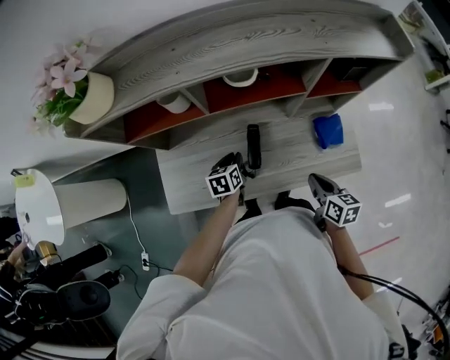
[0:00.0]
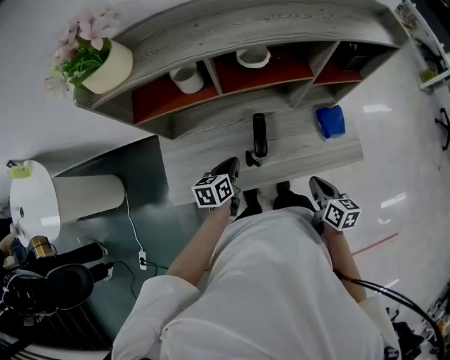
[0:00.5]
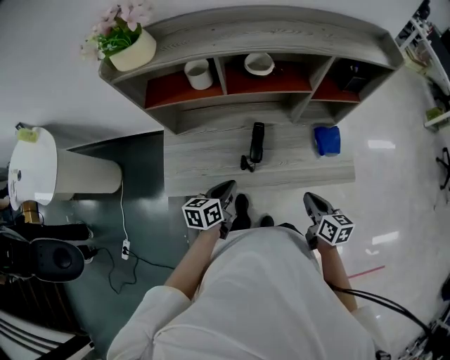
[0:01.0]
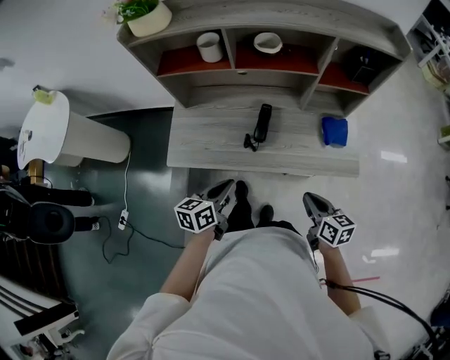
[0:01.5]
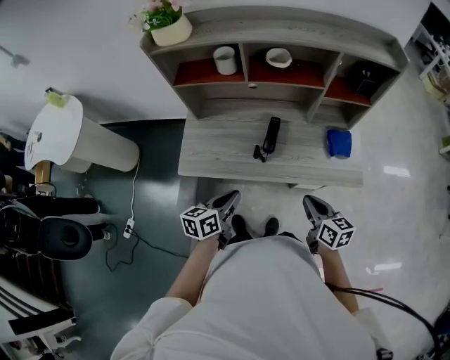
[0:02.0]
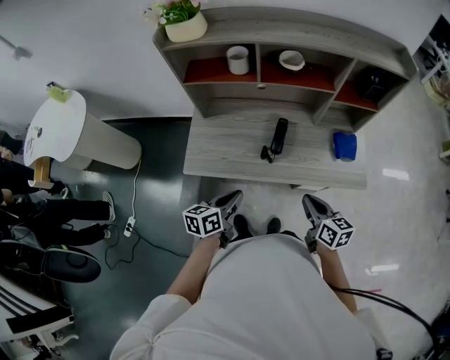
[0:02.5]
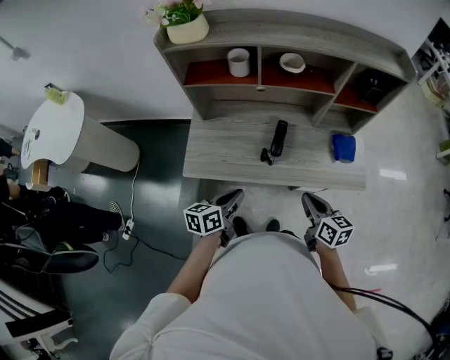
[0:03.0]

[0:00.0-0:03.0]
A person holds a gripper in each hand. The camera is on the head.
0:00.0 to 0:01.5: The right gripper travels backward by roughly 15 cm. Meanwhile the left gripper shifts approximately 30 cm backward and upward, and turns by roughly 20 degrees.
0:01.5 to 0:03.0: The grippers both shift to the left by roughly 5 cm.

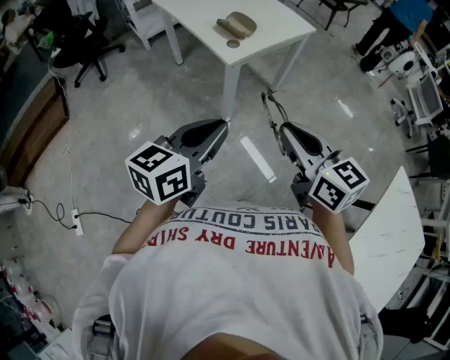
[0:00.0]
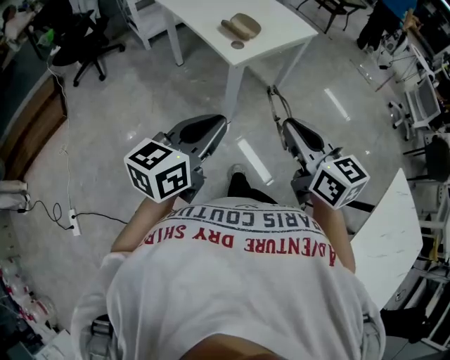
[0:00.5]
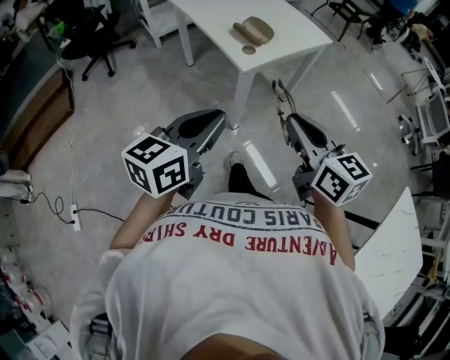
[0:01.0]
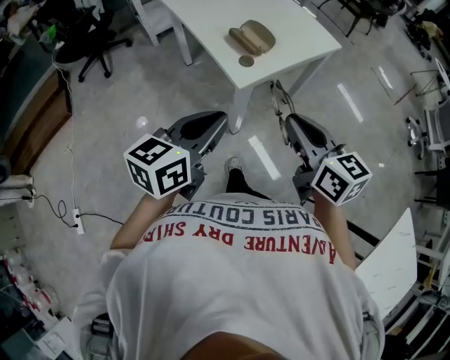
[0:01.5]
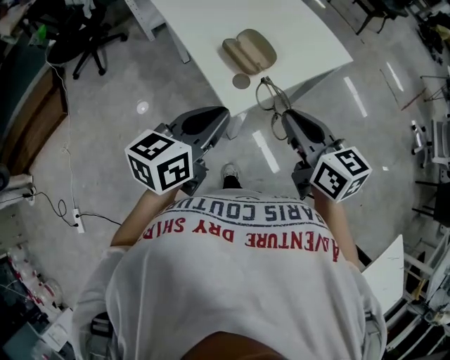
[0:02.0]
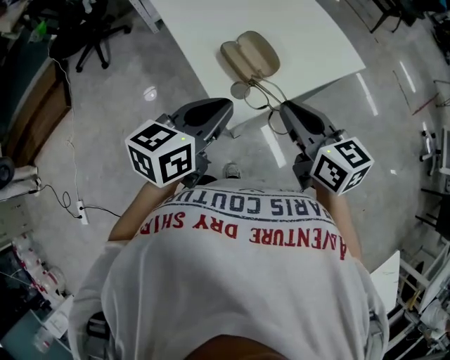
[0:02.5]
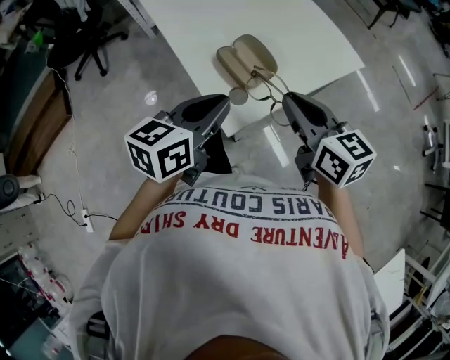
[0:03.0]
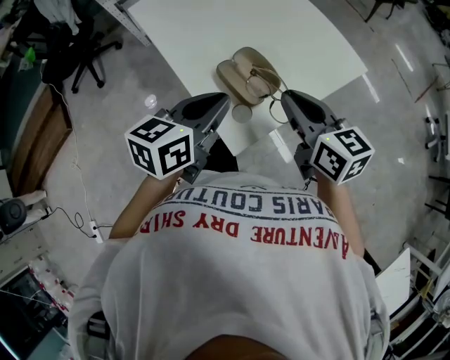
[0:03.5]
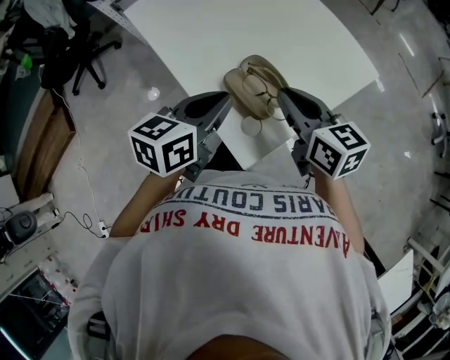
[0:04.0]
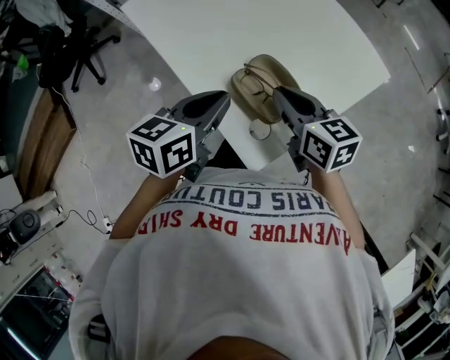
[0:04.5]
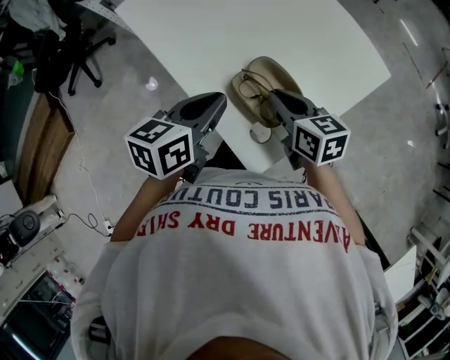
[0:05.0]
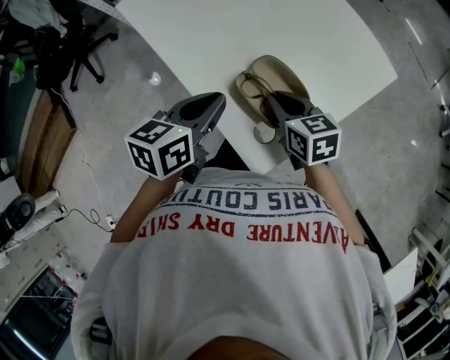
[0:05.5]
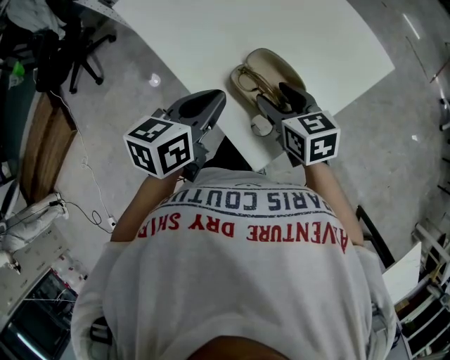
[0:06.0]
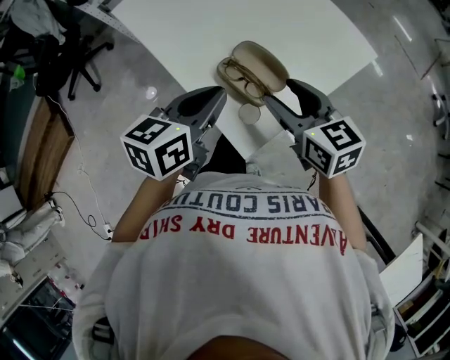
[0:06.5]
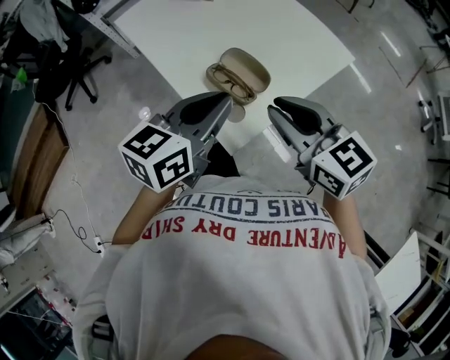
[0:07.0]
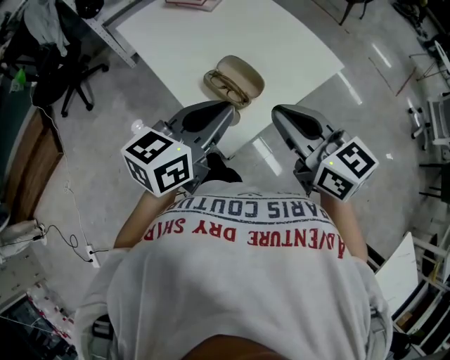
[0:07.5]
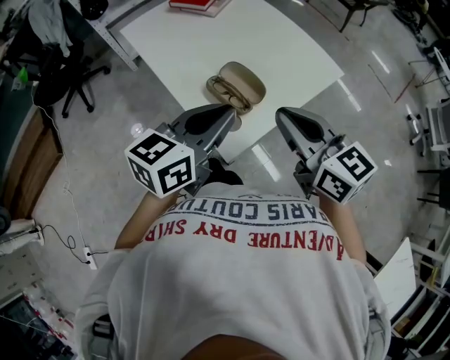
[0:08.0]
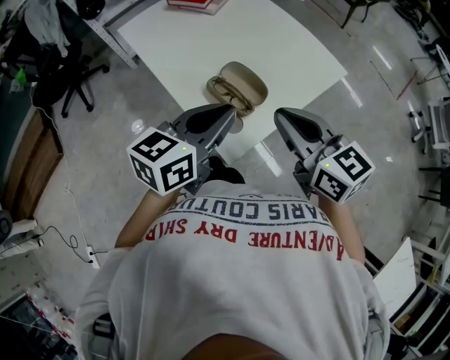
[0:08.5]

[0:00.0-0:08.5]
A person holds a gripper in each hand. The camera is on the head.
0:00.0 to 0:02.0: The two grippers go roughly 30 cm forward.
0:02.0 to 0:04.0: The grippers both shift forward by some 20 cm.
0:04.0 to 0:06.5: The right gripper reaches roughly 10 cm downward, then returns, and opens.
0:06.5 to 0:08.5: Both grippers move upward and backward, roughly 10 cm. The right gripper closes its fingers.

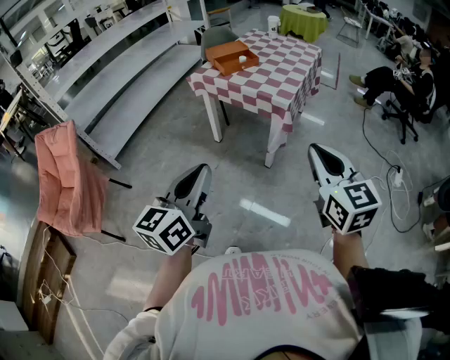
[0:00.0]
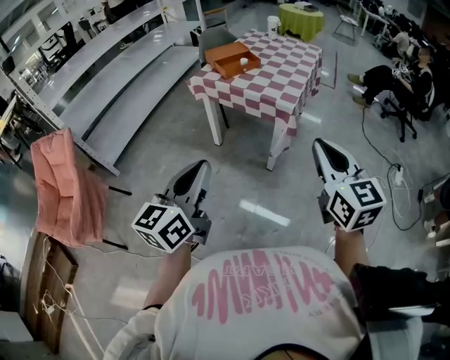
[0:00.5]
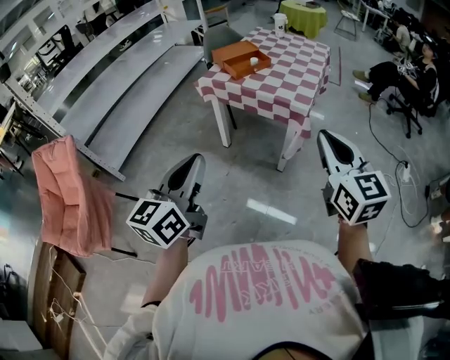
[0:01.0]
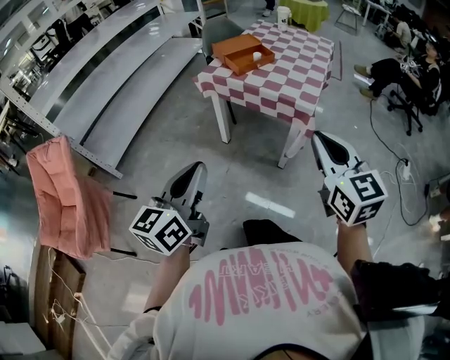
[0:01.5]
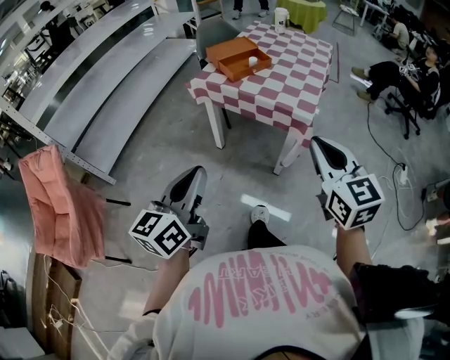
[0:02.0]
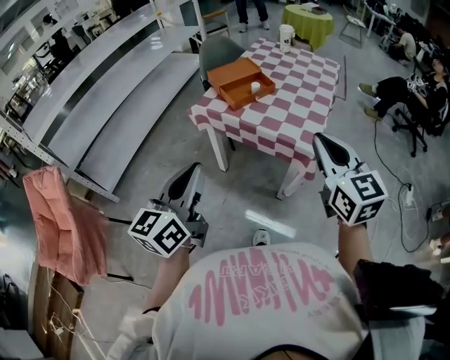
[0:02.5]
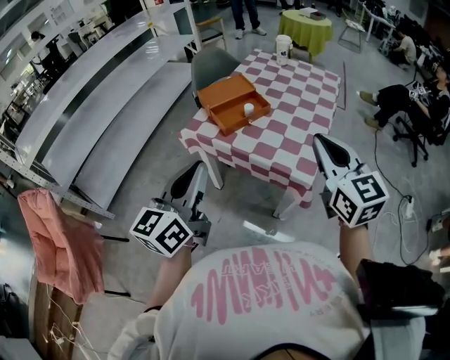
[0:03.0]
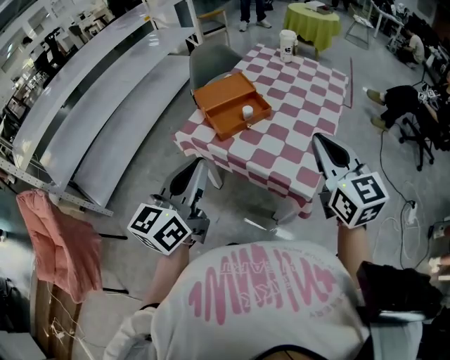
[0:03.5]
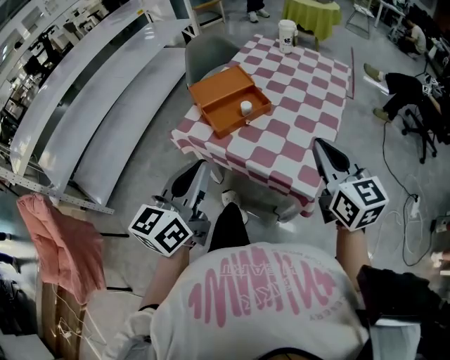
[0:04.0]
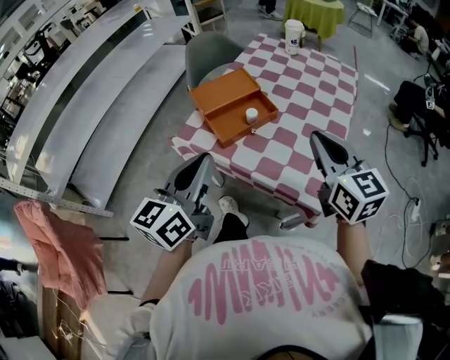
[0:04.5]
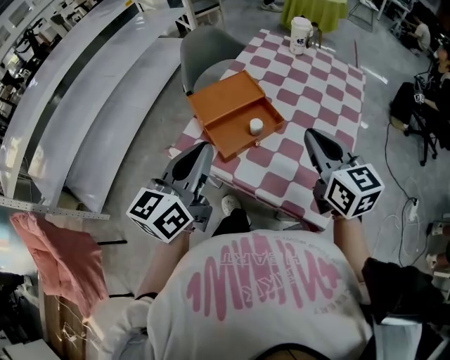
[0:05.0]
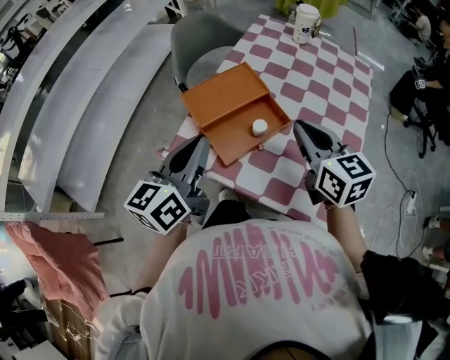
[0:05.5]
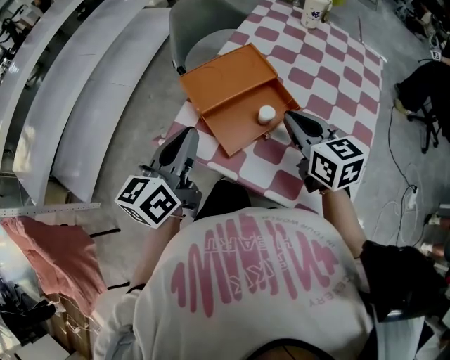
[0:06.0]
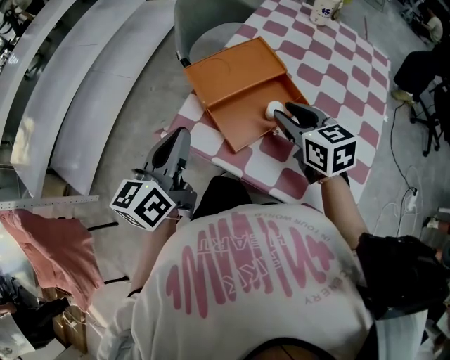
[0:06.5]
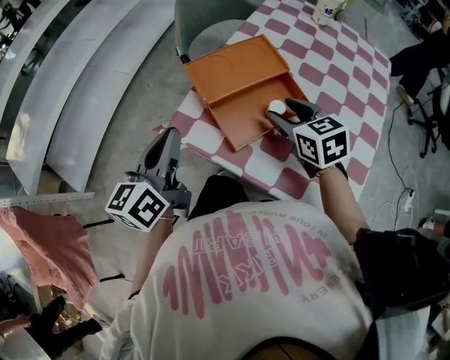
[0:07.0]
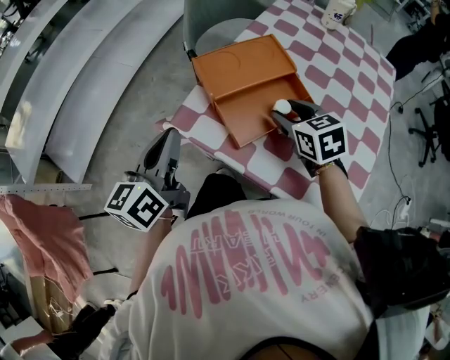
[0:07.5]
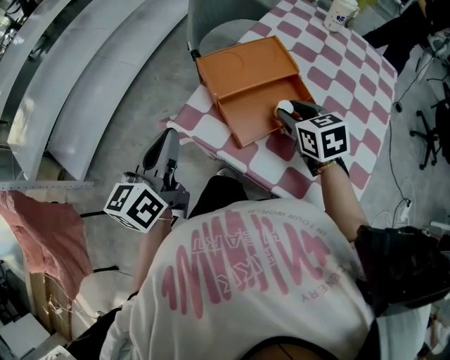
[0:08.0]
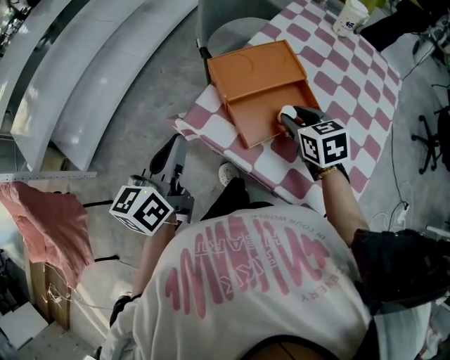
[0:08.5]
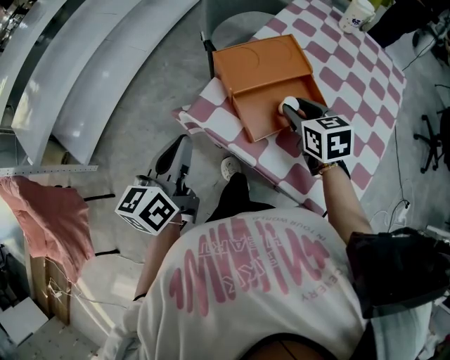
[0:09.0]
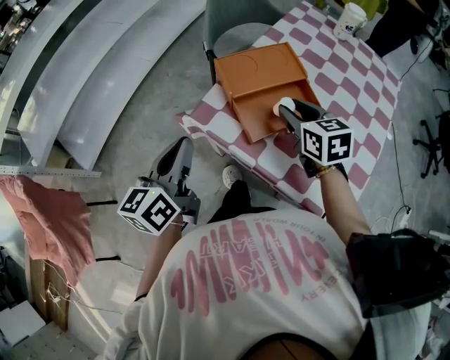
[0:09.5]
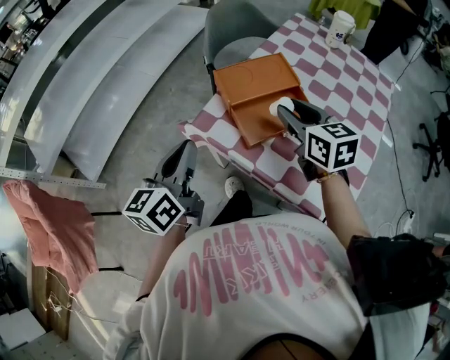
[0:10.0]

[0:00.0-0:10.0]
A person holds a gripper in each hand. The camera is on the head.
0:00.0 to 0:02.0: Both grippers travel together forward and to the left, roughly 25 cm.
0:02.0 to 0:04.0: Both grippers move forward, some 35 cm.
0:04.0 to 0:06.0: The right gripper is displaced forward, downward and to the left by approximately 30 cm; the left gripper moves forward and downward, some 25 cm.
0:06.0 to 0:08.0: The left gripper goes approximately 10 cm to the left. The right gripper is displaced downward by some 10 cm, rotates approximately 20 degrees, and opens up.
0:08.0 to 0:10.0: The left gripper goes approximately 5 cm backward. Meanwhile the right gripper moves upward, about 10 cm.

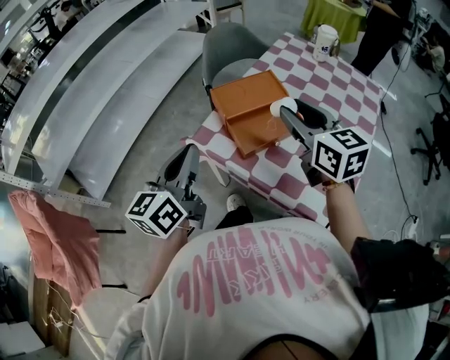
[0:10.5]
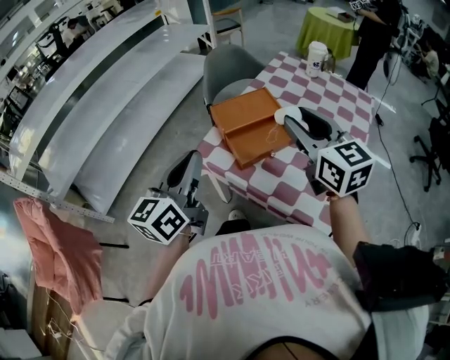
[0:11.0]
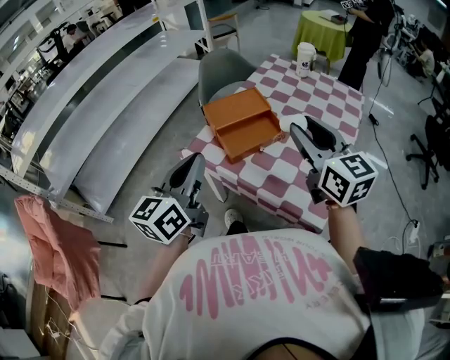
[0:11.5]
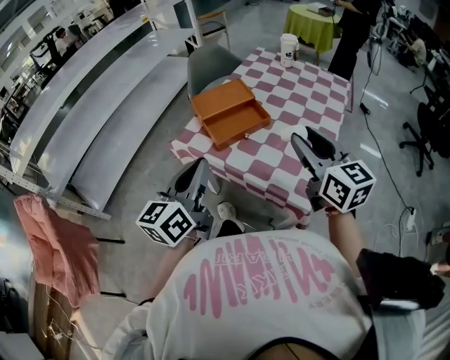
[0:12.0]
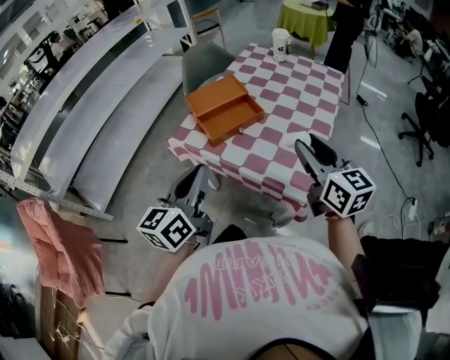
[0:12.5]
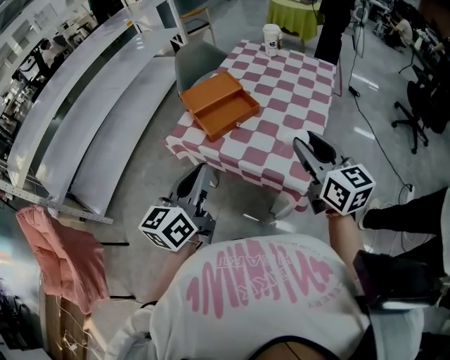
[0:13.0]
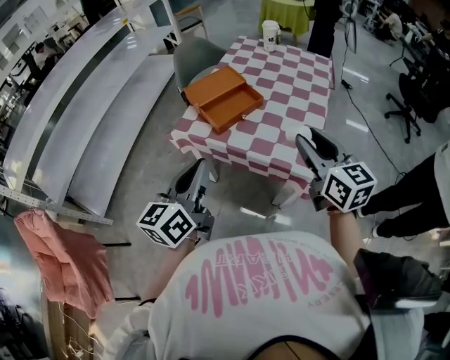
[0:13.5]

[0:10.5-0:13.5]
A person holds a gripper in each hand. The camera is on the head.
0:10.5 to 0:12.0: The two grippers go some 20 cm backward and to the right.
0:12.0 to 0:13.5: The two grippers go some 5 cm backward.

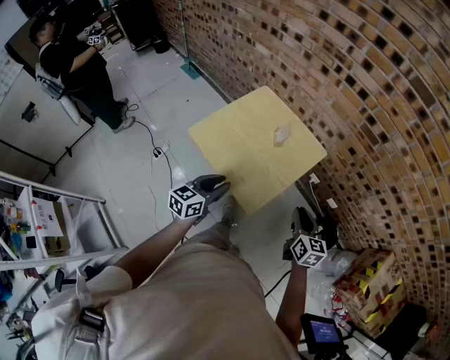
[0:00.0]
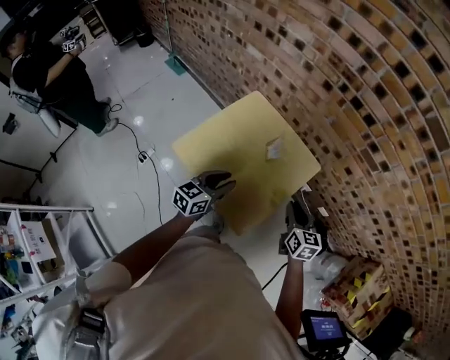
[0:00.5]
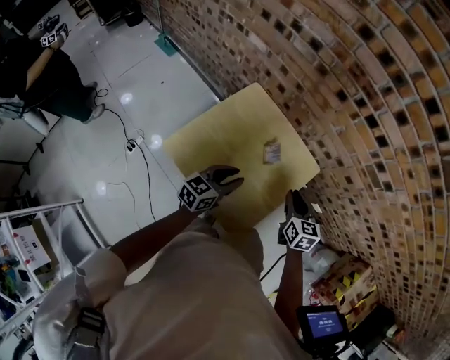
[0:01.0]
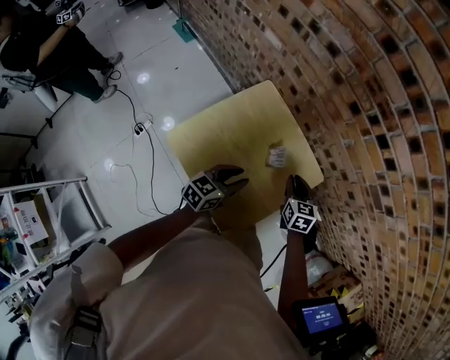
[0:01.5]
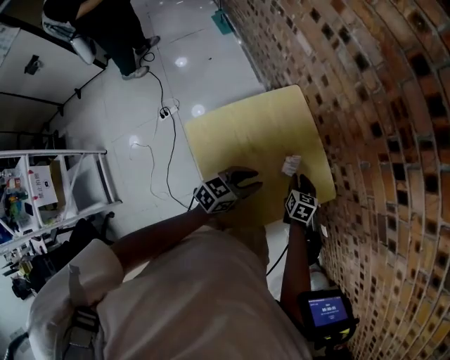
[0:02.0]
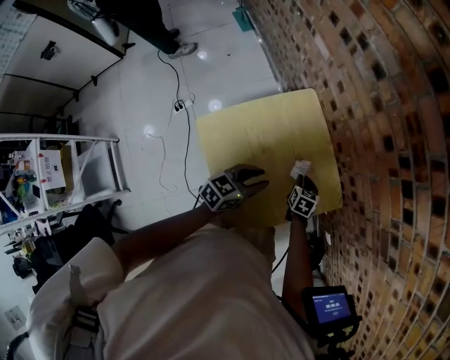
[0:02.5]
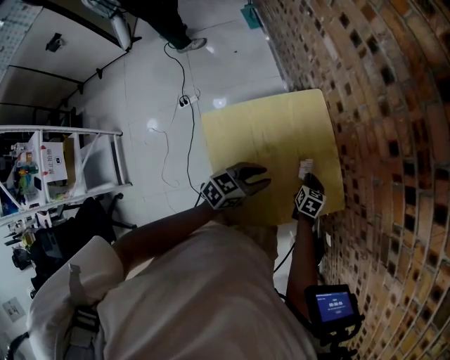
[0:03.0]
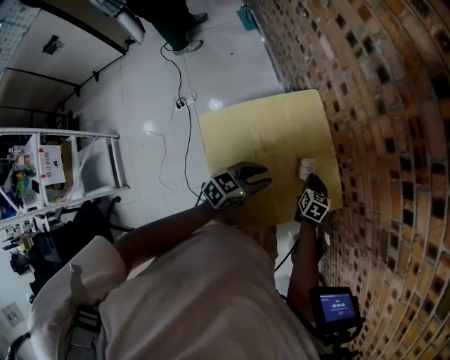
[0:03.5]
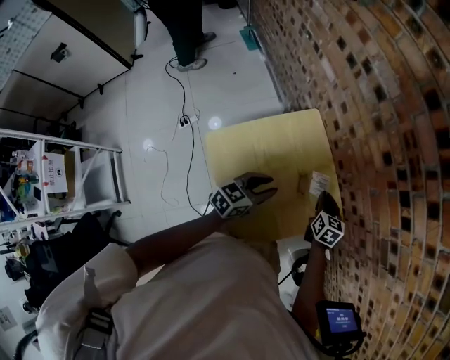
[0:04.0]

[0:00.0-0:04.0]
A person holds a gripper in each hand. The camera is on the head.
0:00.0 to 0:02.0: The right gripper shifts roughly 40 cm forward, downward and to the left, and swivels about 30 degrees. The left gripper moves forward, approximately 25 cm.
0:02.0 to 0:04.0: The right gripper travels upward by roughly 5 cm.
